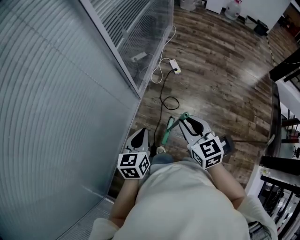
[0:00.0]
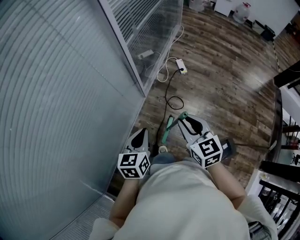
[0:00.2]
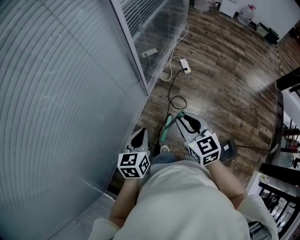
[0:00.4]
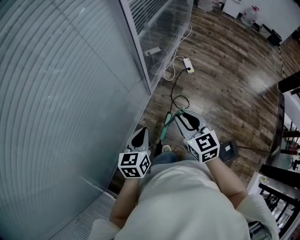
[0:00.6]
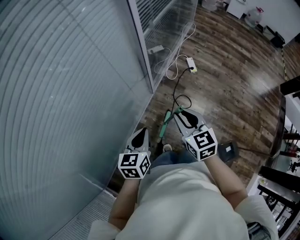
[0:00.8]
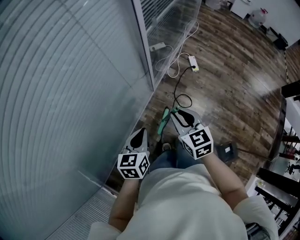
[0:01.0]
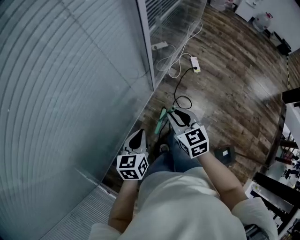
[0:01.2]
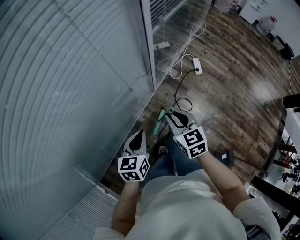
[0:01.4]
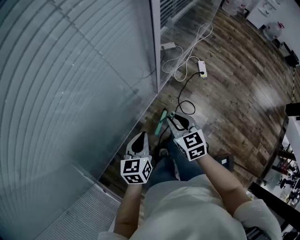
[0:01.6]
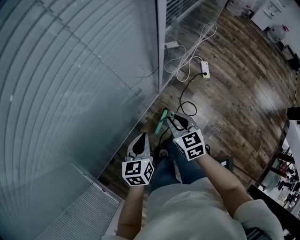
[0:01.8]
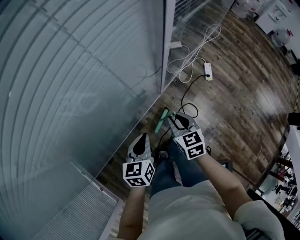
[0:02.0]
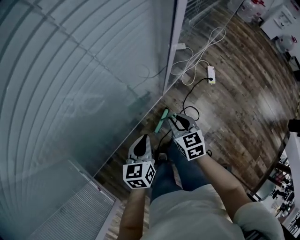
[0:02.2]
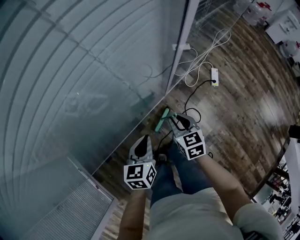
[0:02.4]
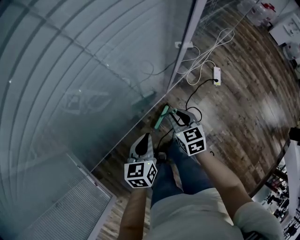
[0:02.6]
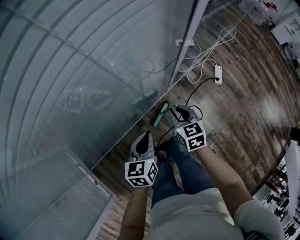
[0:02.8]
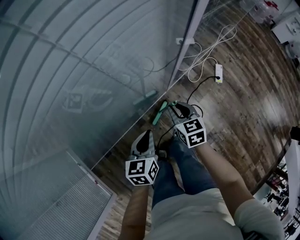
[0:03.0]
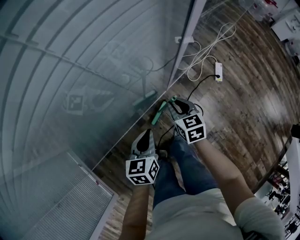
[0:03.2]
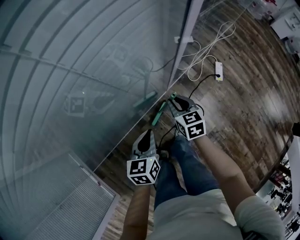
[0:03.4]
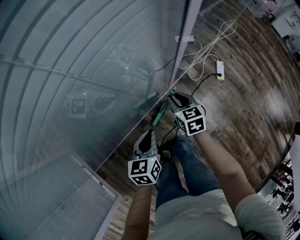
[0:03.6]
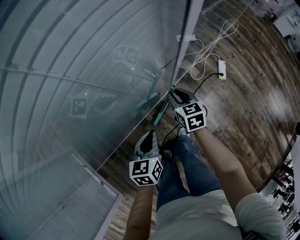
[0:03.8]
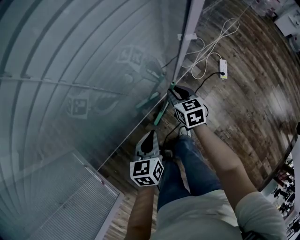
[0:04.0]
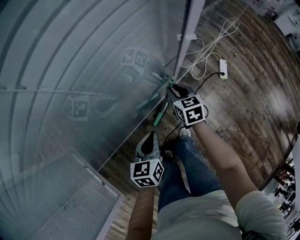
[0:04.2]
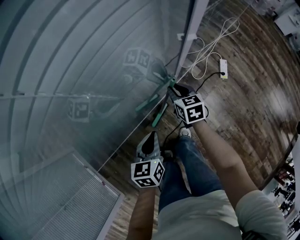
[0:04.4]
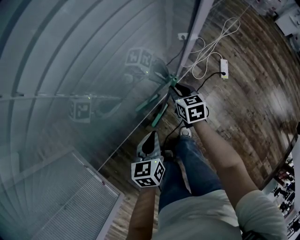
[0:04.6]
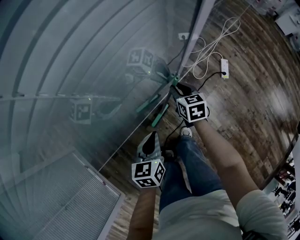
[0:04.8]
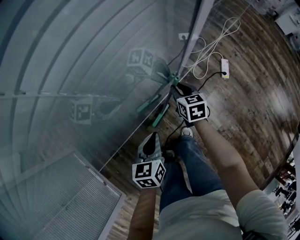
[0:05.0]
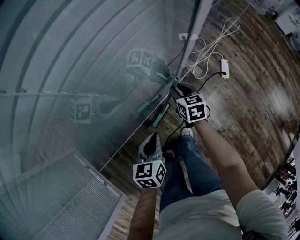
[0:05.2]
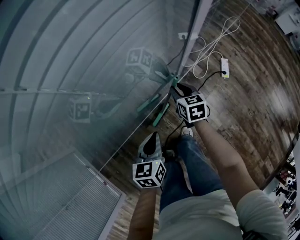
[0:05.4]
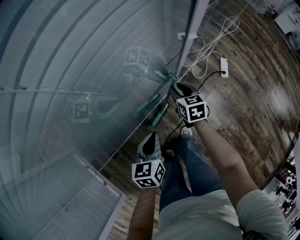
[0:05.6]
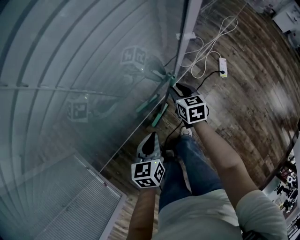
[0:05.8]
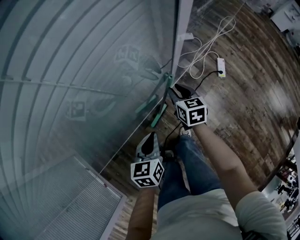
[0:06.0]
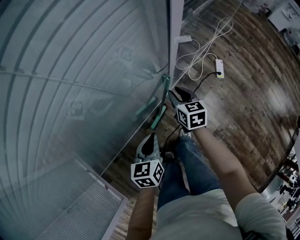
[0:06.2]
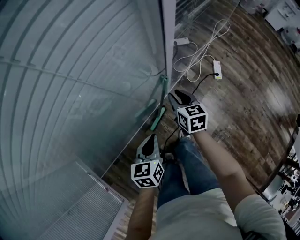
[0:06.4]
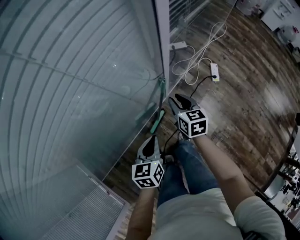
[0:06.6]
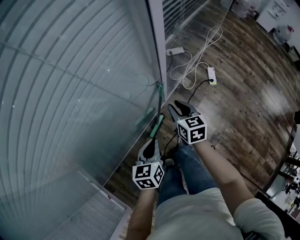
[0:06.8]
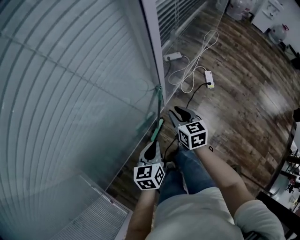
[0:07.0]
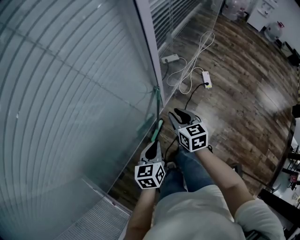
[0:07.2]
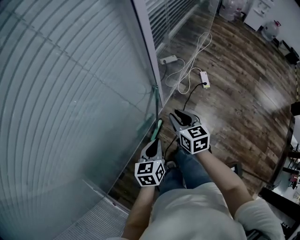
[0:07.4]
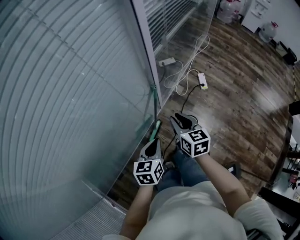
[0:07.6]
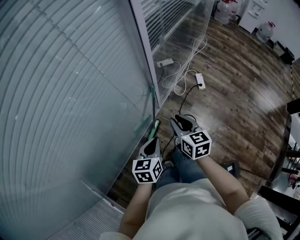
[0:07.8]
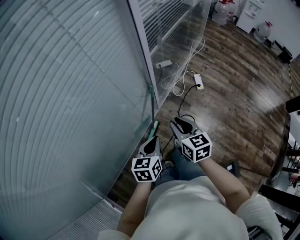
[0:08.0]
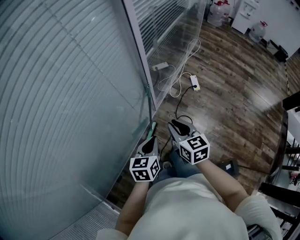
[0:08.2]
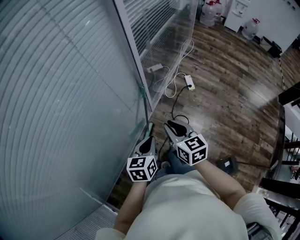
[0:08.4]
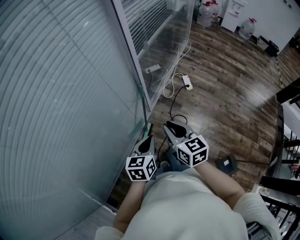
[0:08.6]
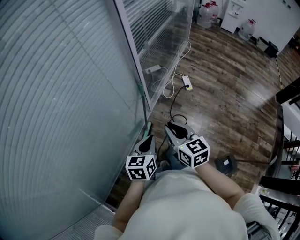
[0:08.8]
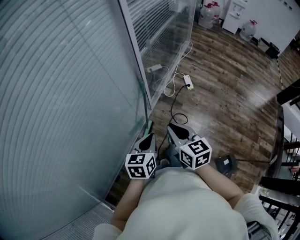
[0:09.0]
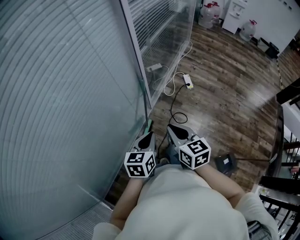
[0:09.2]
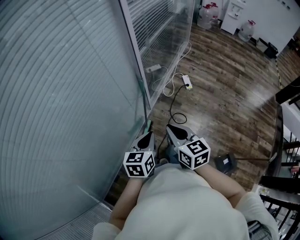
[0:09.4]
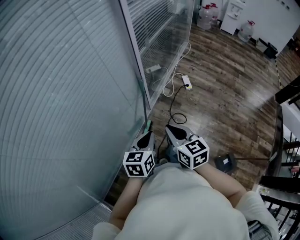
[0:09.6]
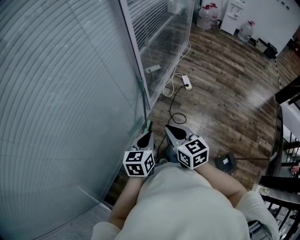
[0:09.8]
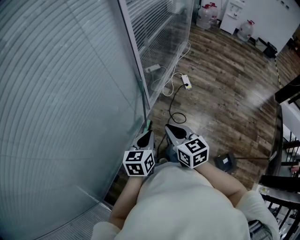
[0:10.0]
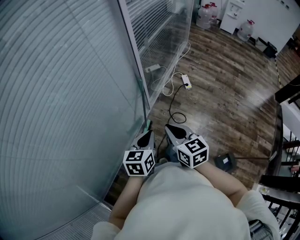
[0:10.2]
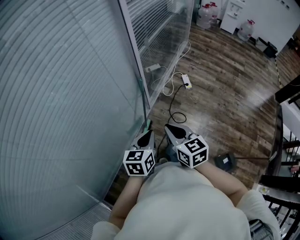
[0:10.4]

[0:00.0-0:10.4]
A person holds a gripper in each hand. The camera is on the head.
0.0 to 1.4 s: The right gripper moves to the left, forward and downward, roughly 25 cm. The left gripper heads to the left, forward and downward, covering roughly 15 cm.
1.4 to 3.0 s: The left gripper is displaced forward and downward by approximately 10 cm. Meanwhile the right gripper is displaced forward and downward by some 20 cm.
3.0 to 4.4 s: The right gripper moves forward, about 10 cm.
4.4 to 6.0 s: The grippers stay close to where they were, moving slightly.
6.0 to 7.4 s: The right gripper shifts roughly 20 cm upward and backward. Meanwhile the left gripper is displaced upward and backward by some 10 cm.
7.4 to 9.0 s: The right gripper shifts roughly 20 cm backward and upward, while the left gripper goes approximately 15 cm backward and upward.
9.0 to 10.4 s: The grippers stay close to where they were, moving slightly.

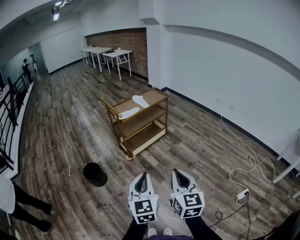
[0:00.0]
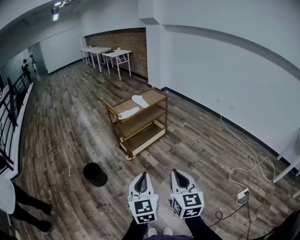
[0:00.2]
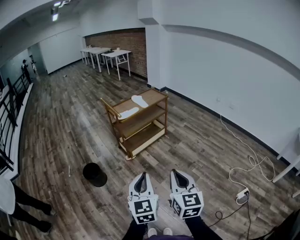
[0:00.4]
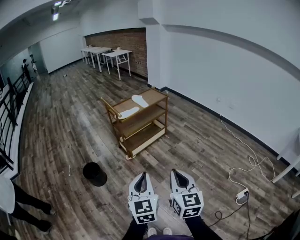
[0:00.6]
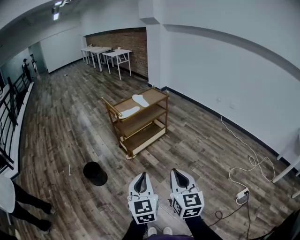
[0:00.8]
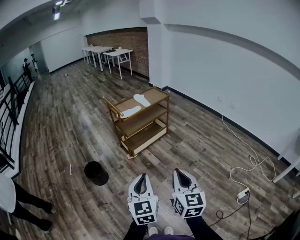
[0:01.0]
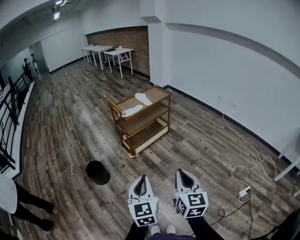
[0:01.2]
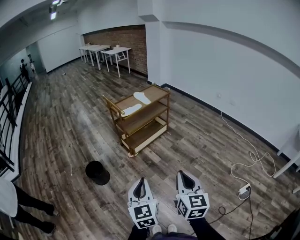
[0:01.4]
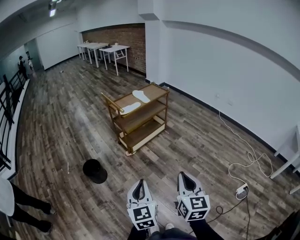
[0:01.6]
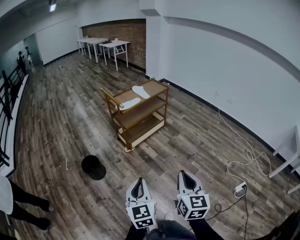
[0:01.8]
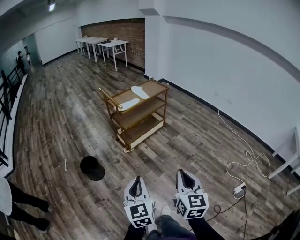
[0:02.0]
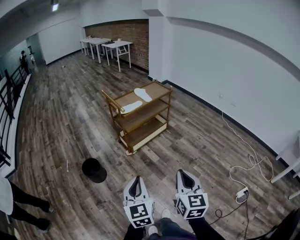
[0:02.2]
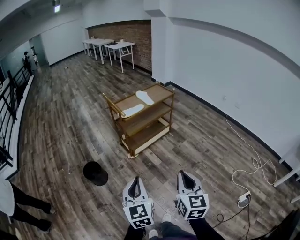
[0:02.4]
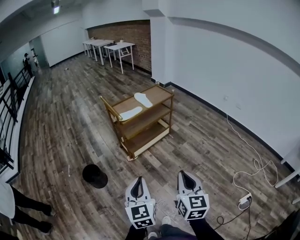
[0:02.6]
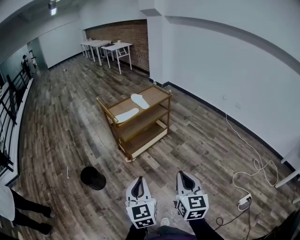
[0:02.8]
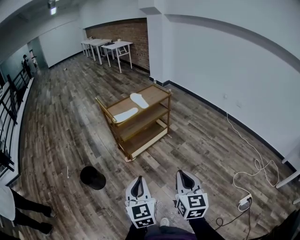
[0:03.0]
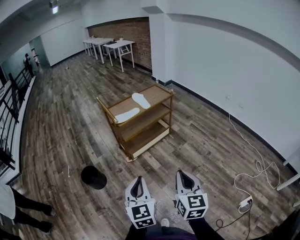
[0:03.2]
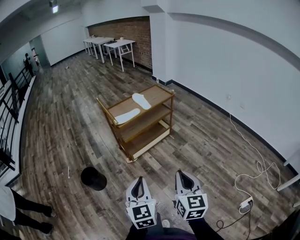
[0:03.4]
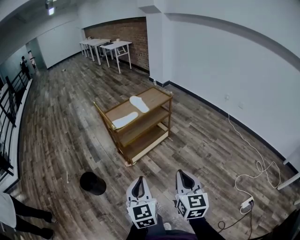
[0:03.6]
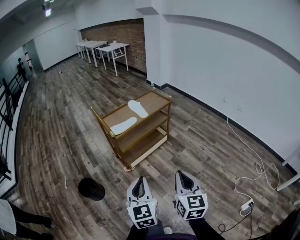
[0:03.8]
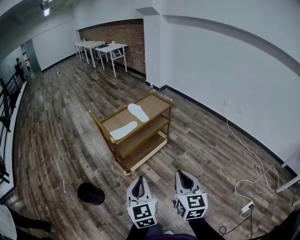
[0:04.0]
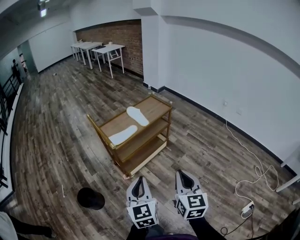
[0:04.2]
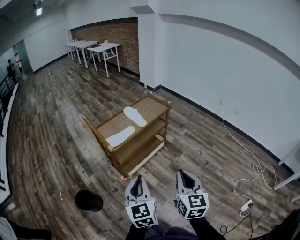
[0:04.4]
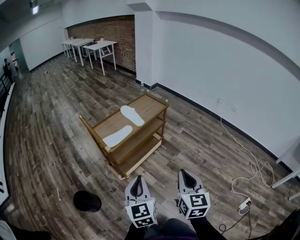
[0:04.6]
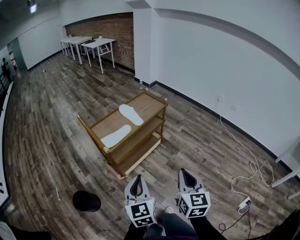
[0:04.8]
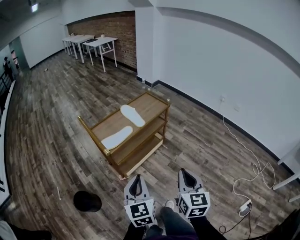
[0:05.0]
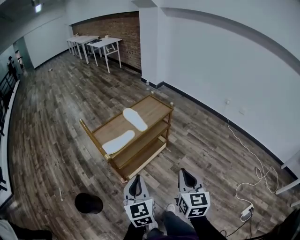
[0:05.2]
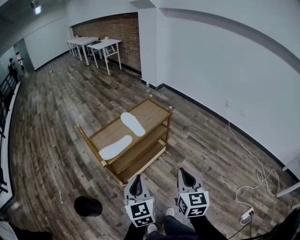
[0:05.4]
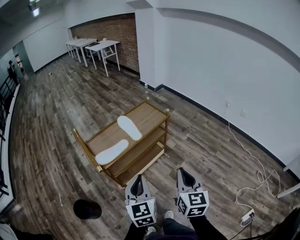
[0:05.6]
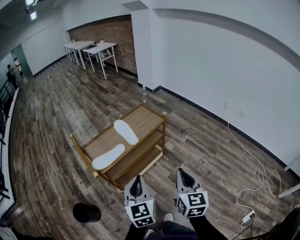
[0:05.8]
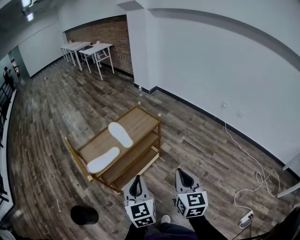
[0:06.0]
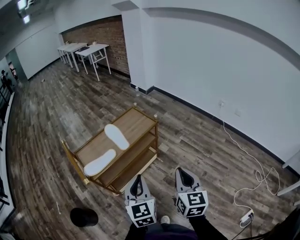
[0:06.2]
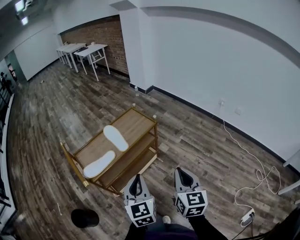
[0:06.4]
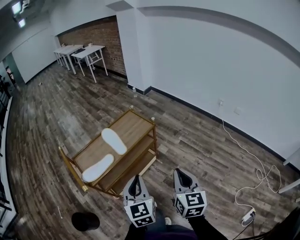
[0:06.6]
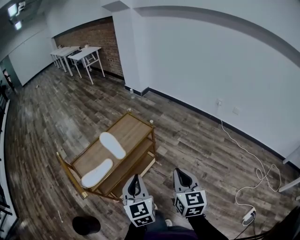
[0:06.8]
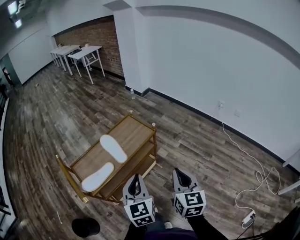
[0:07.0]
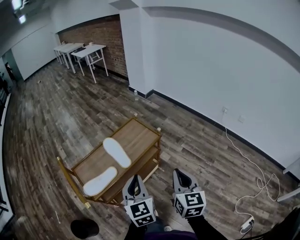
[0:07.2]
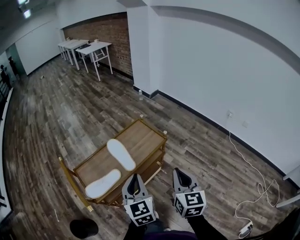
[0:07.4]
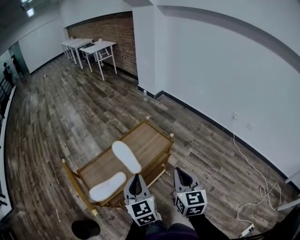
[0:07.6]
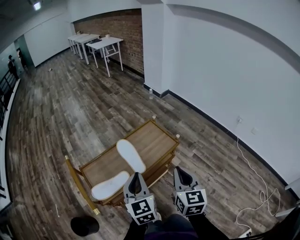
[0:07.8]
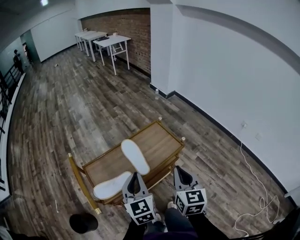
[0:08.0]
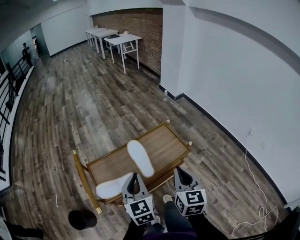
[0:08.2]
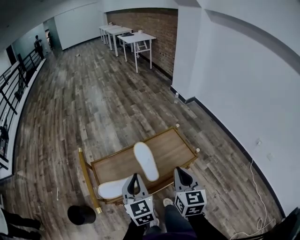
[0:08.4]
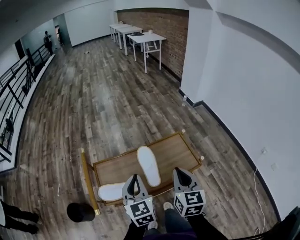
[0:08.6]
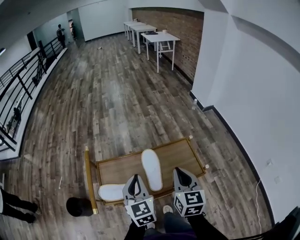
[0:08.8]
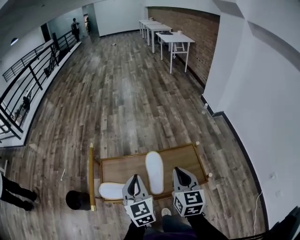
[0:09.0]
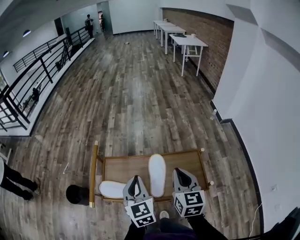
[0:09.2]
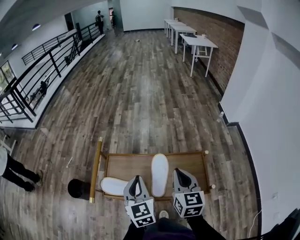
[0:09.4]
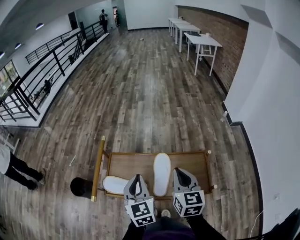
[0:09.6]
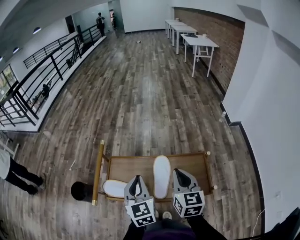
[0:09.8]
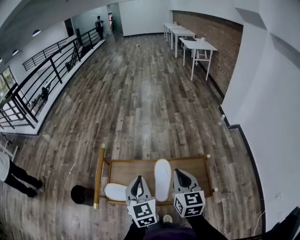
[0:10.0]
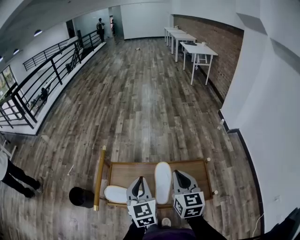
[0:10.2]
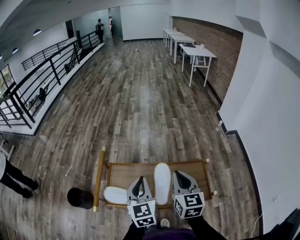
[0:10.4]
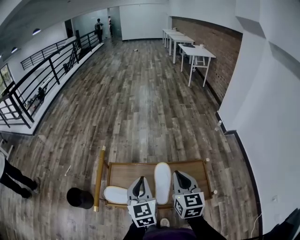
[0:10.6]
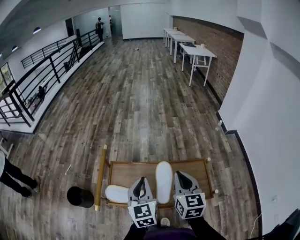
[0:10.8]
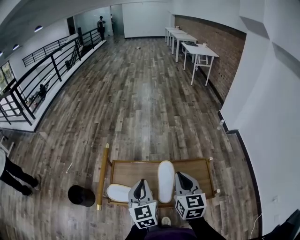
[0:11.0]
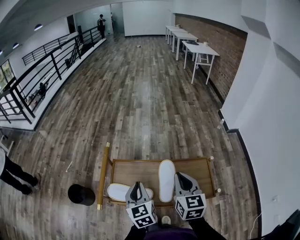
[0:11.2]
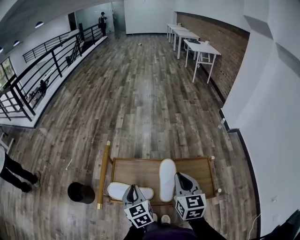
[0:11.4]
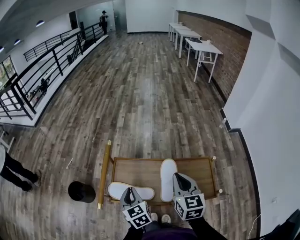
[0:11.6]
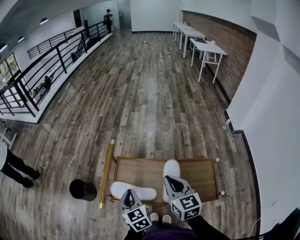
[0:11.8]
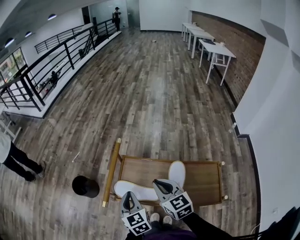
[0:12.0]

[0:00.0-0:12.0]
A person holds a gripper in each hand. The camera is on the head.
0.0 to 1.6 s: The left gripper travels to the left by some 5 cm.
1.6 to 3.0 s: The grippers both shift forward and to the right by about 20 cm.
3.0 to 4.4 s: Both grippers move forward, roughly 20 cm.
4.4 to 6.0 s: The grippers both shift forward and to the right by some 25 cm.
6.0 to 7.6 s: Both grippers move forward, roughly 20 cm.
7.6 to 9.0 s: The right gripper ends up about 25 cm from where it was, and turns by roughly 30 degrees. The left gripper shifts by some 15 cm, and turns by some 30 degrees.
9.0 to 10.4 s: The right gripper travels forward by some 5 cm.
10.4 to 12.0 s: The right gripper moves roughly 20 cm, and swivels some 30 degrees, while the left gripper ends up roughly 15 cm from where it was, and changes its angle by some 30 degrees.

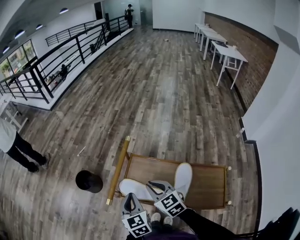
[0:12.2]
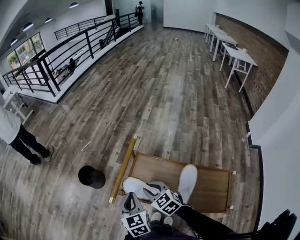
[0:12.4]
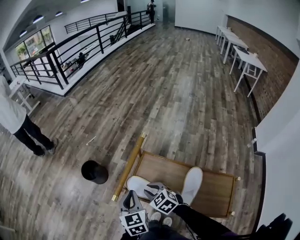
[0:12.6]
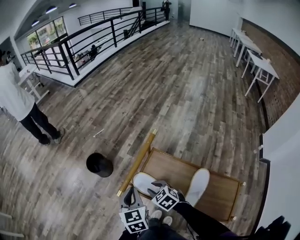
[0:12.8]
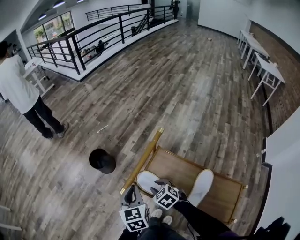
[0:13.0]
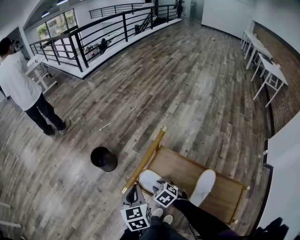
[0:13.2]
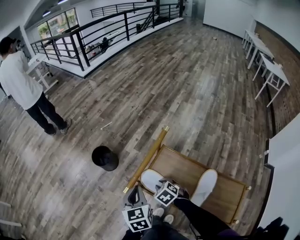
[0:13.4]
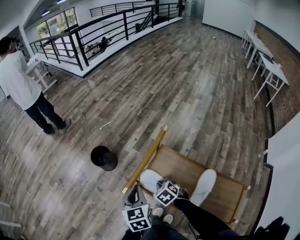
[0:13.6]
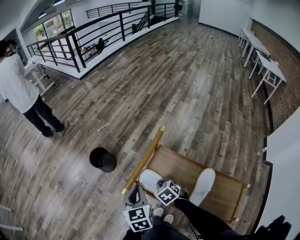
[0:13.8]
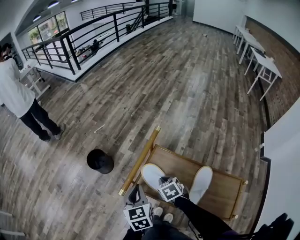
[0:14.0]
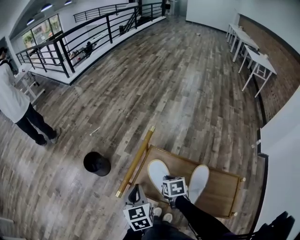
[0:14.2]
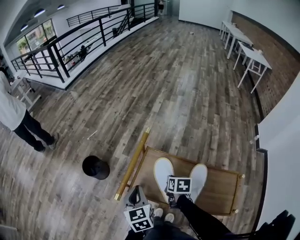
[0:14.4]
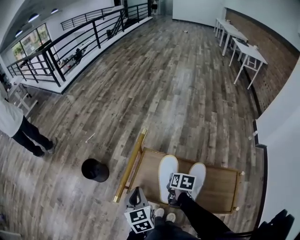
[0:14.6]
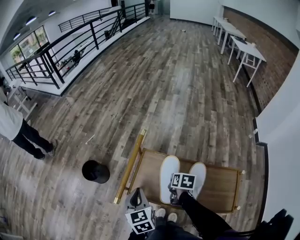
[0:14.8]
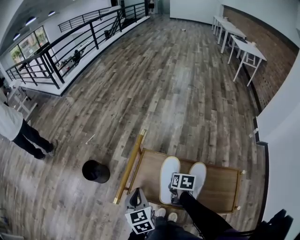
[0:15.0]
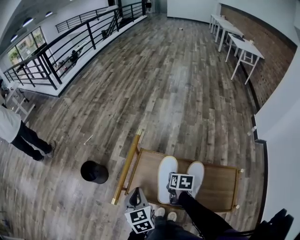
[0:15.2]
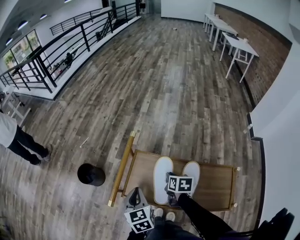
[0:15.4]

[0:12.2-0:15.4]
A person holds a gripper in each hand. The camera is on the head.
12.2 to 13.8 s: The right gripper moves downward, some 15 cm, tilts its fingers roughly 30 degrees downward, and opens and closes again, while the left gripper is displaced to the left by approximately 5 cm.
13.8 to 15.4 s: The right gripper goes some 15 cm to the right, and twists some 60 degrees clockwise, seen from behind, while the left gripper moves to the right, about 10 cm.
